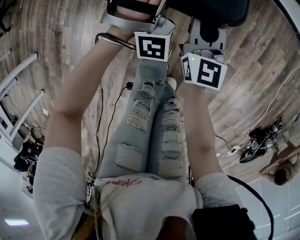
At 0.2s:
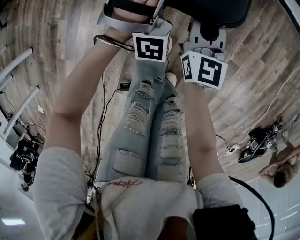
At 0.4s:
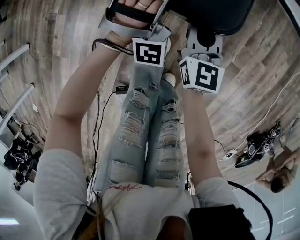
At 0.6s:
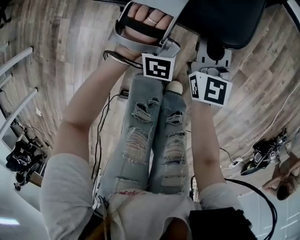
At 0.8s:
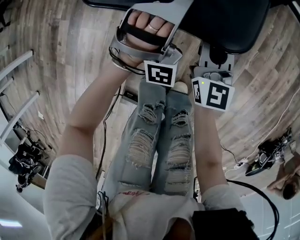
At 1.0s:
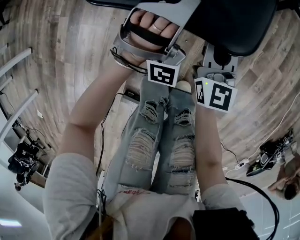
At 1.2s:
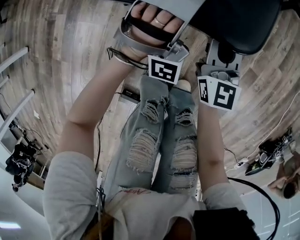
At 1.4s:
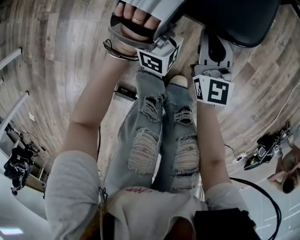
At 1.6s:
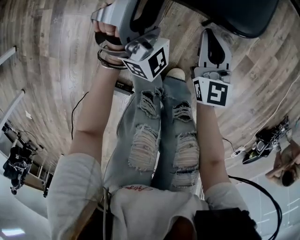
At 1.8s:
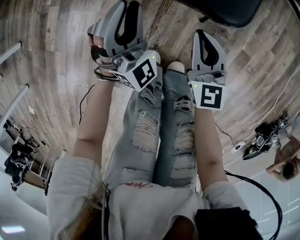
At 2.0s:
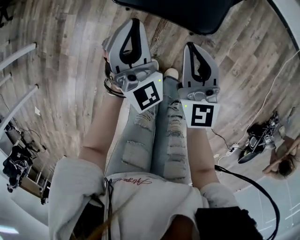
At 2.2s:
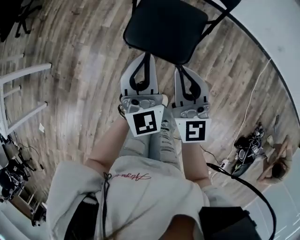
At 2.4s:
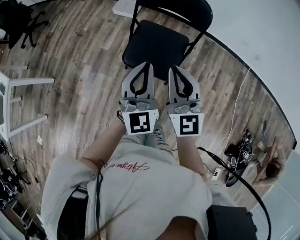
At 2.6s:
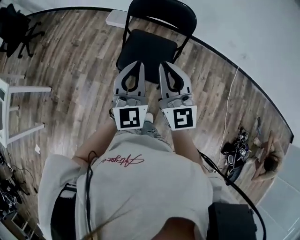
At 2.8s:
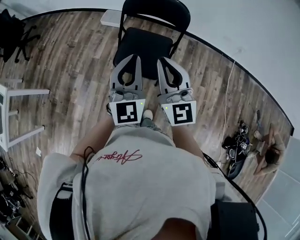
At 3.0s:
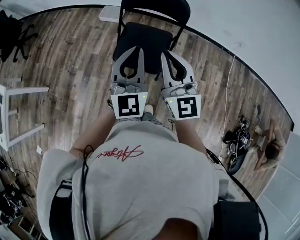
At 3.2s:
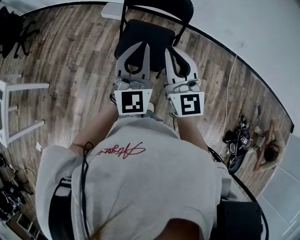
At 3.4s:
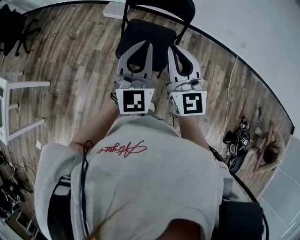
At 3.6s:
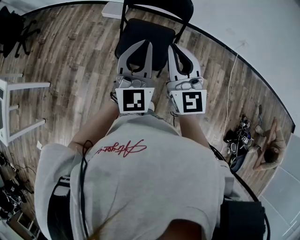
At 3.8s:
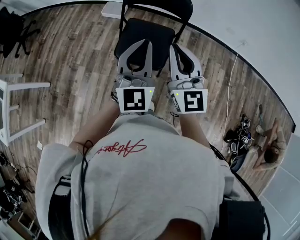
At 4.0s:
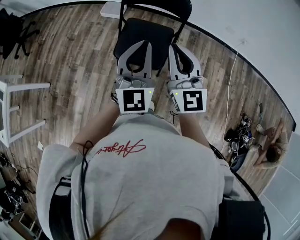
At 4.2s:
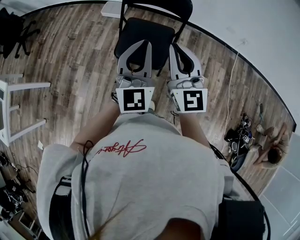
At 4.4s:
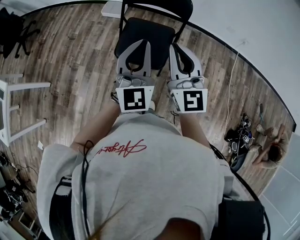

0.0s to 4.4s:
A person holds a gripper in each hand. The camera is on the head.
0.0s to 1.4s: The two grippers go about 20 cm backward and downward. The left gripper turns by roughly 20 degrees.
1.4s to 3.0s: Both grippers move upward, roughly 60 cm. The right gripper rotates about 30 degrees, while the left gripper rotates around the line of its fingers by approximately 70 degrees, counterclockwise from behind, and closes.
3.0s to 4.4s: There are only small adjustments of the grippers.

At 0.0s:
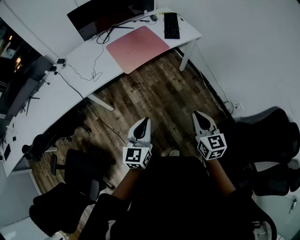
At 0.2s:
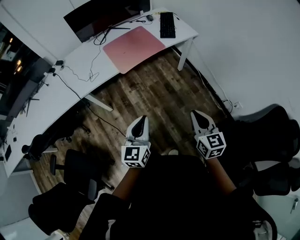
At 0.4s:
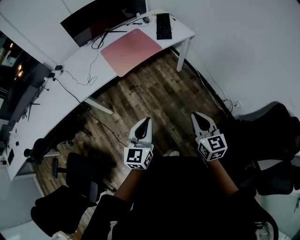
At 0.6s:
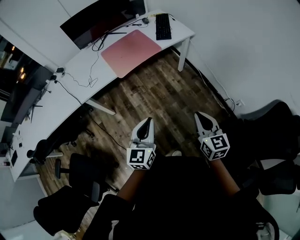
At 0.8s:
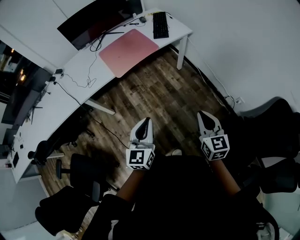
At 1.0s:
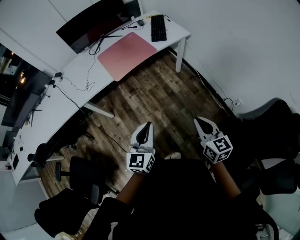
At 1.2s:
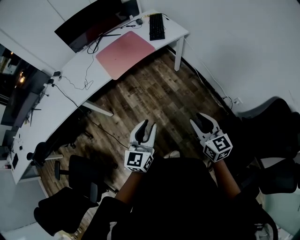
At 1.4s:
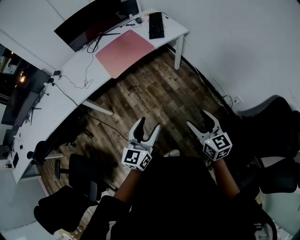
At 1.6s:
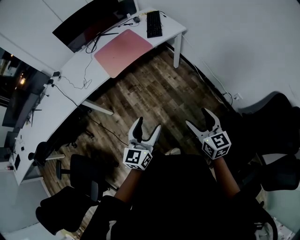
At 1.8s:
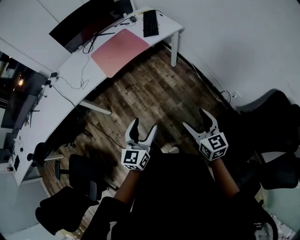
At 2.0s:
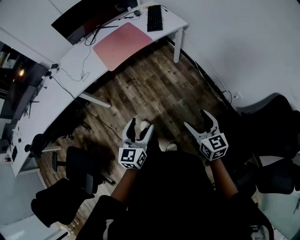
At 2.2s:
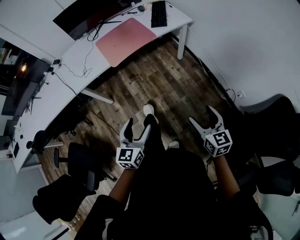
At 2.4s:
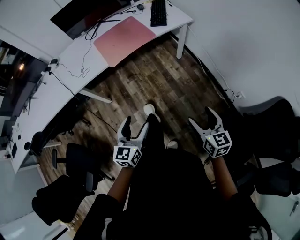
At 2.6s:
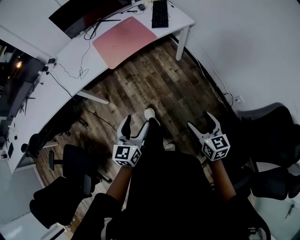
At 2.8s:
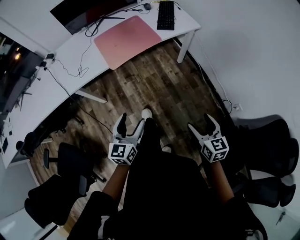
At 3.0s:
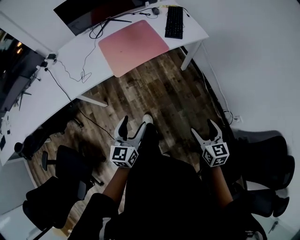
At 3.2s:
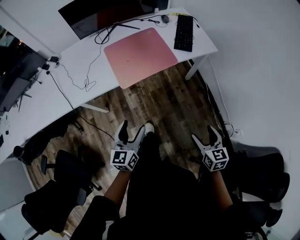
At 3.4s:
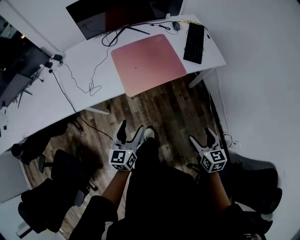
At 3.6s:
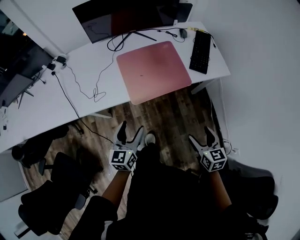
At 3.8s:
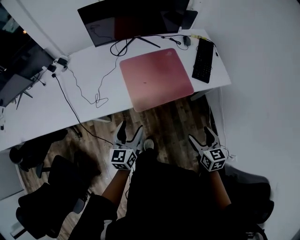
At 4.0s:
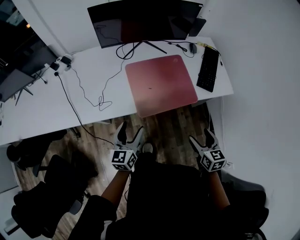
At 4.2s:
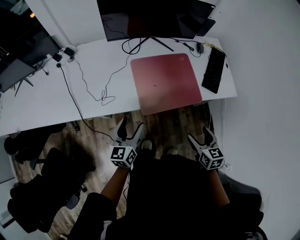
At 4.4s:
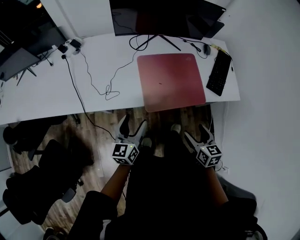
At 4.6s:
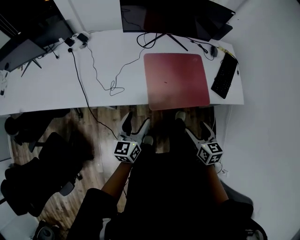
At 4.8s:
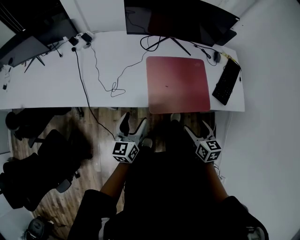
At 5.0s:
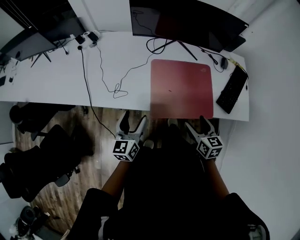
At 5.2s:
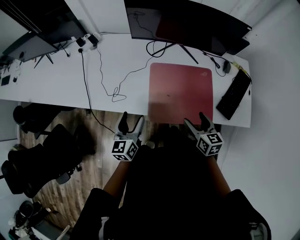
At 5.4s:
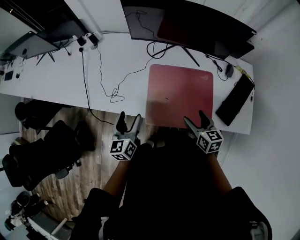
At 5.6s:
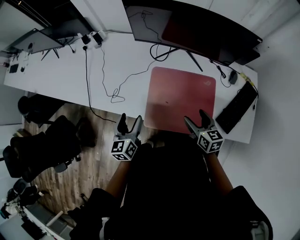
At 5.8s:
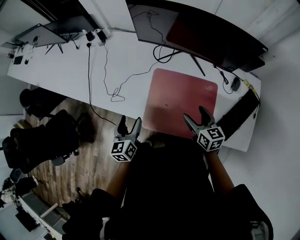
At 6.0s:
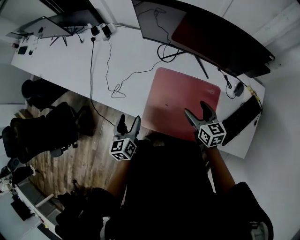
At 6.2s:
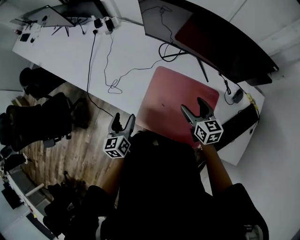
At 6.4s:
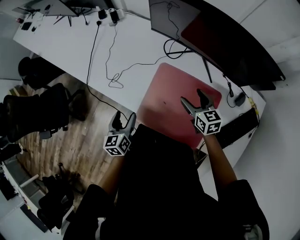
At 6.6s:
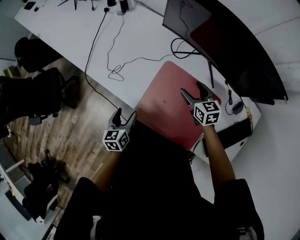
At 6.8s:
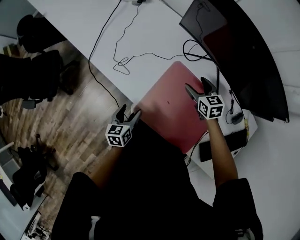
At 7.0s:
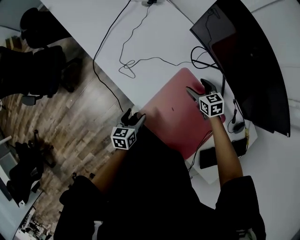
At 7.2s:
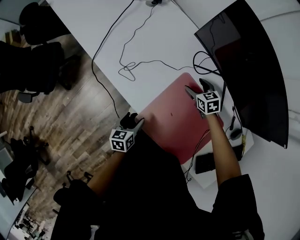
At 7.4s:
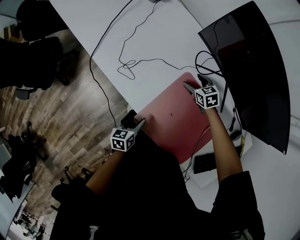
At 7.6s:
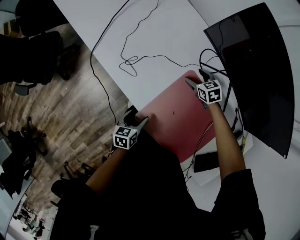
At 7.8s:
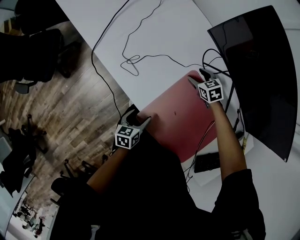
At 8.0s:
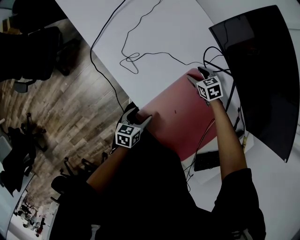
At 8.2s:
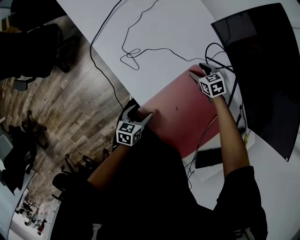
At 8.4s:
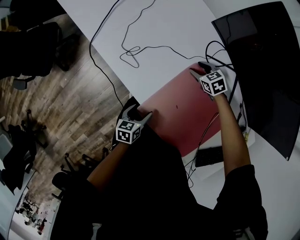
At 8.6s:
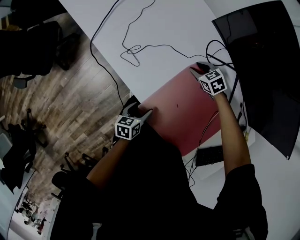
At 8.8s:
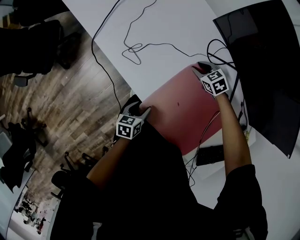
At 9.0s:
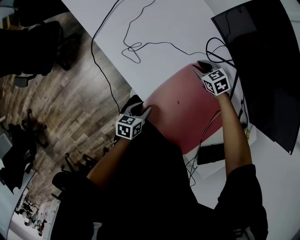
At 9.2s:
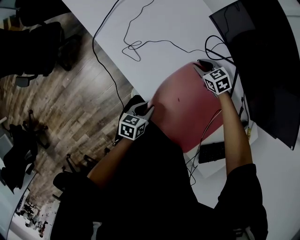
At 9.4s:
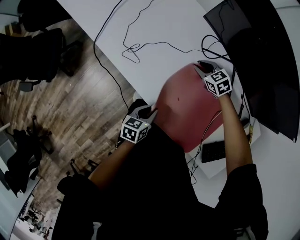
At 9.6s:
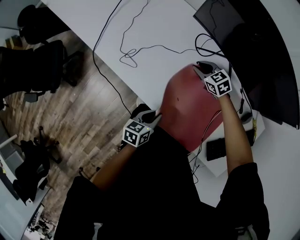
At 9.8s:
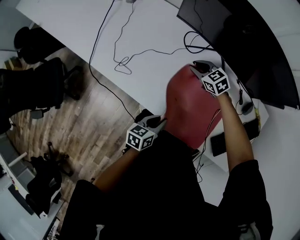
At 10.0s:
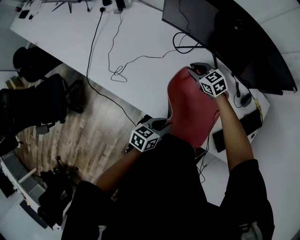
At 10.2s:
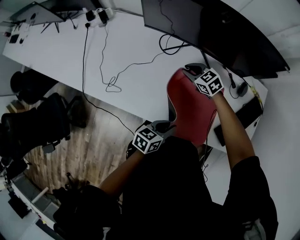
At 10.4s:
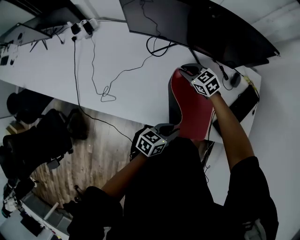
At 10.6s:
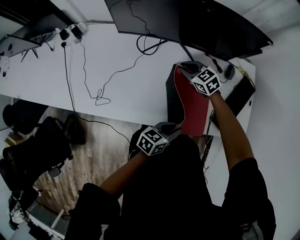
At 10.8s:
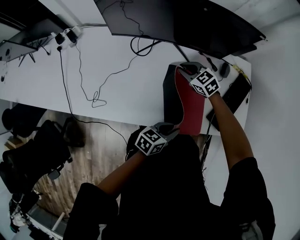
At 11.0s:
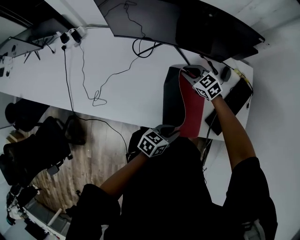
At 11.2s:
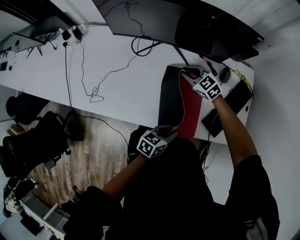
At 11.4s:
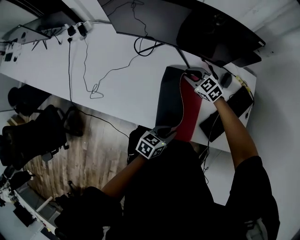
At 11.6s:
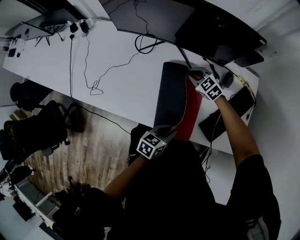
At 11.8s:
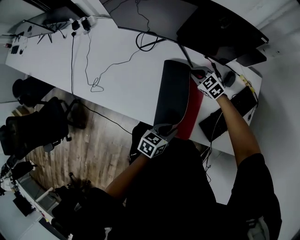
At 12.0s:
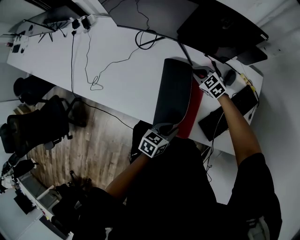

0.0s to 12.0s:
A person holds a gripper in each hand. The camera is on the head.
0.0s to 1.6s: The two grippers go roughly 15 cm to the right. The left gripper opens its fingers. Meanwhile the right gripper opens up.
1.6s to 3.0s: The right gripper moves forward and downward, about 15 cm. Meanwhile the left gripper shifts some 20 cm forward and to the left.
3.0s to 4.4s: Both grippers move forward and to the left, approximately 35 cm. The left gripper turns by some 20 degrees.
4.4s to 6.0s: The left gripper shifts by approximately 10 cm, and swivels some 40 degrees. Meanwhile the right gripper moves approximately 35 cm, and changes its angle by about 30 degrees.
6.0s to 7.6s: The right gripper shifts roughly 35 cm forward and downward, and changes its angle by about 50 degrees, while the left gripper travels downward by about 20 cm, and rotates roughly 30 degrees.
7.6s to 9.0s: The right gripper closes. The left gripper closes up.
9.0s to 10.4s: The left gripper moves approximately 25 cm, and swivels approximately 60 degrees. The right gripper changes place by about 20 cm, and swivels about 30 degrees.
10.4s to 12.0s: Both grippers move to the right, roughly 15 cm.

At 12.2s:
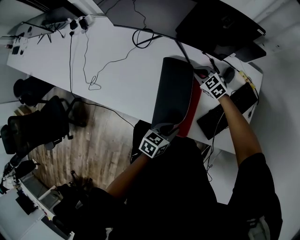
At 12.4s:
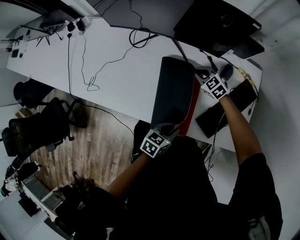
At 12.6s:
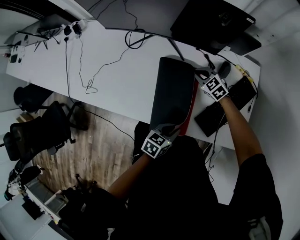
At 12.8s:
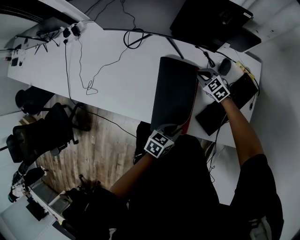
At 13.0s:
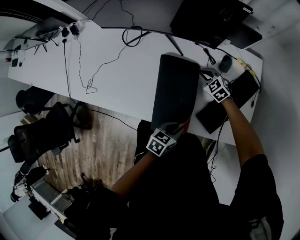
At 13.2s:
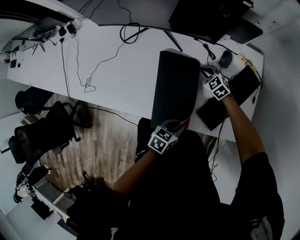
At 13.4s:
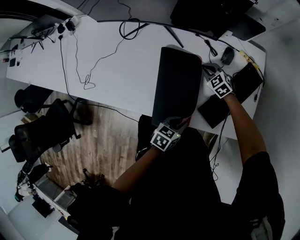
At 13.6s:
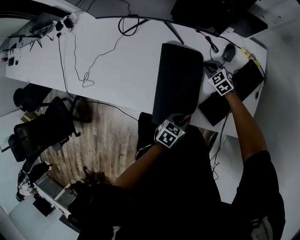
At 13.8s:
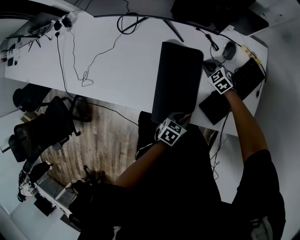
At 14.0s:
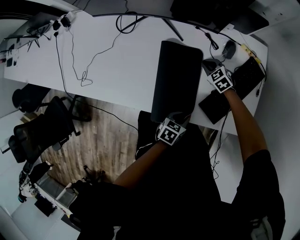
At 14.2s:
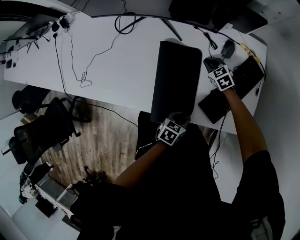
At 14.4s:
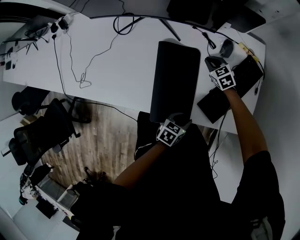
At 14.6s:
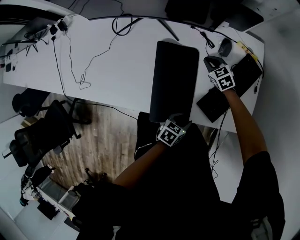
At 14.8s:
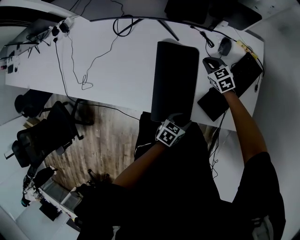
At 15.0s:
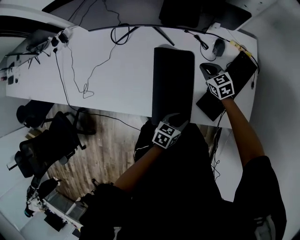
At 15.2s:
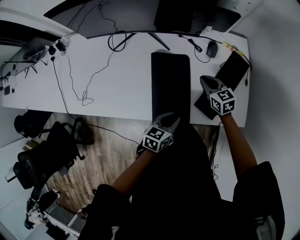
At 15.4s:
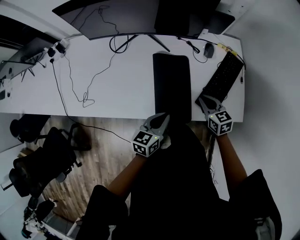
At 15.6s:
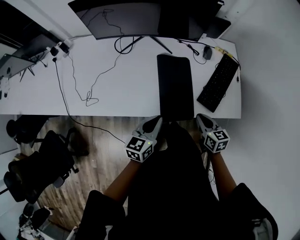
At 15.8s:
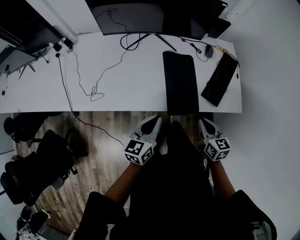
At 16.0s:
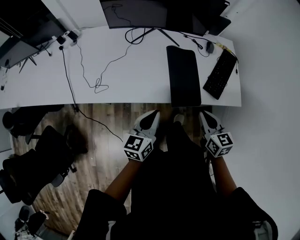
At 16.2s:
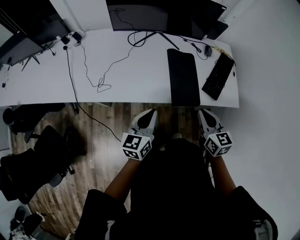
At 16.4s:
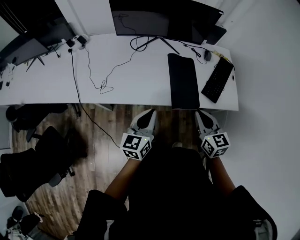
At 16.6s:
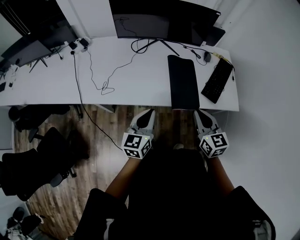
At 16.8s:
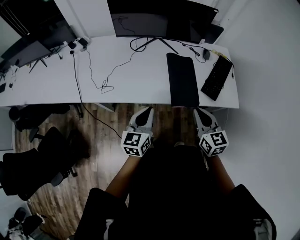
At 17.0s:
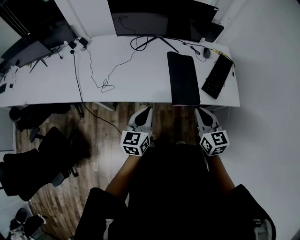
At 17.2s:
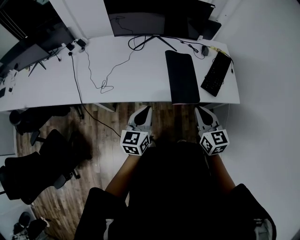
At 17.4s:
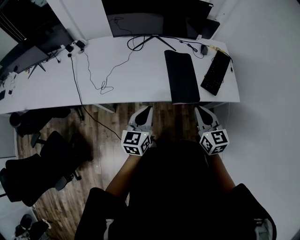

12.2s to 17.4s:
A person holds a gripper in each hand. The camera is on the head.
12.2s to 14.0s: The right gripper heads to the right and downward, covering about 15 cm, while the left gripper heads downward and to the right, covering roughly 10 cm.
14.0s to 15.6s: The right gripper moves backward and upward, approximately 35 cm, and rotates around the line of its fingers by some 50 degrees, clockwise from behind. Meanwhile the left gripper shifts roughly 30 cm upward and to the left, and turns by approximately 30 degrees.
15.6s to 17.4s: The left gripper is displaced backward, to the left and upward by approximately 20 cm; the right gripper heads upward, backward and to the left, covering some 25 cm, and turns by about 20 degrees.

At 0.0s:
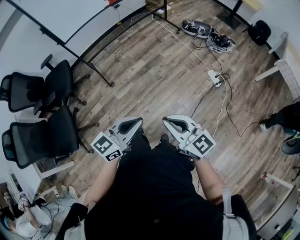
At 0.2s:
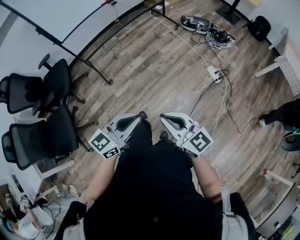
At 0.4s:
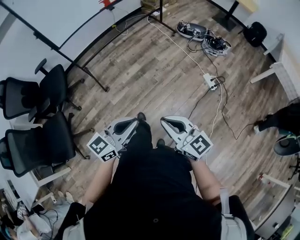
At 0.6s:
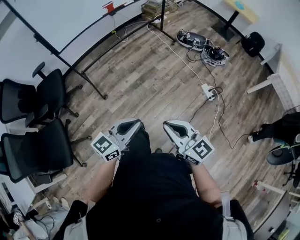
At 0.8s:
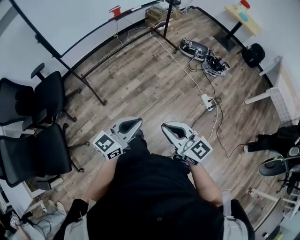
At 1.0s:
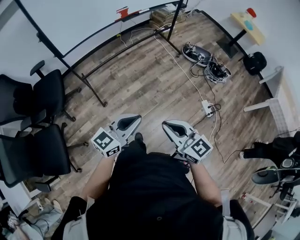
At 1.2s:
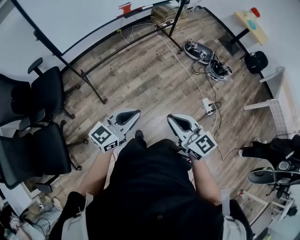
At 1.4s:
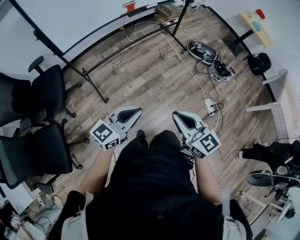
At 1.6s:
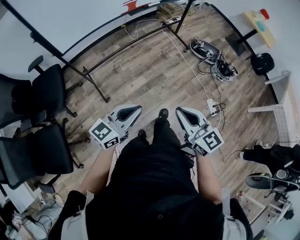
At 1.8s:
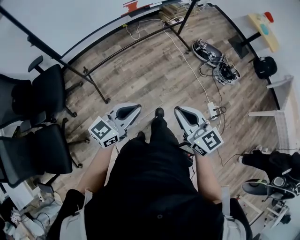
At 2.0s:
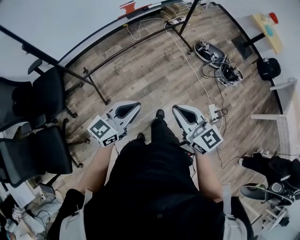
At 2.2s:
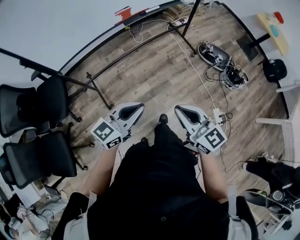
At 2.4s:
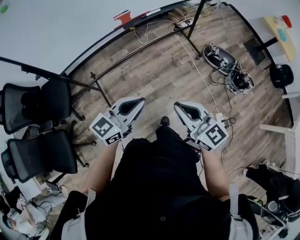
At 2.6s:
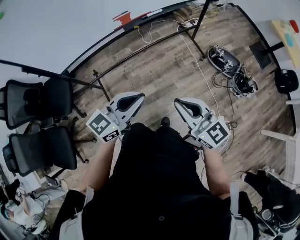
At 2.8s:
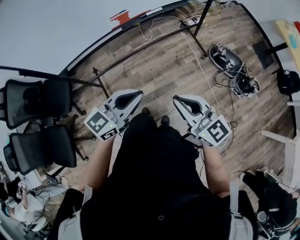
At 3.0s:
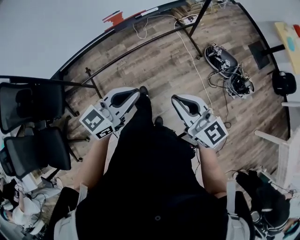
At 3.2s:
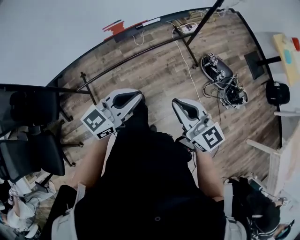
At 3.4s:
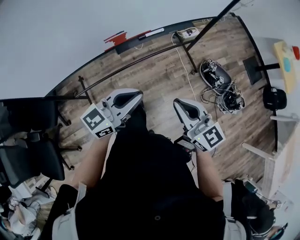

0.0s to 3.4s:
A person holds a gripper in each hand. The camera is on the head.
0.0s to 1.6s: The left gripper travels forward and to the left by roughly 40 cm; the right gripper goes about 35 cm forward.
1.6s to 3.4s: The two grippers travel together, forward, roughly 50 cm.
